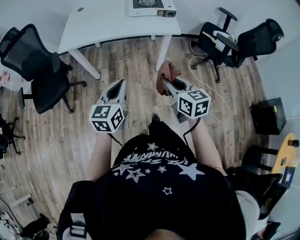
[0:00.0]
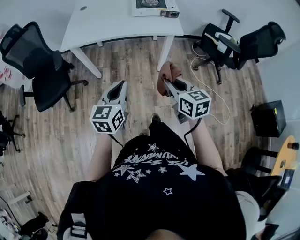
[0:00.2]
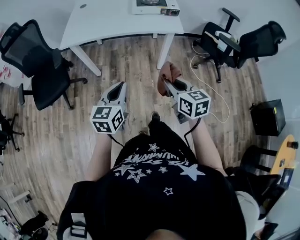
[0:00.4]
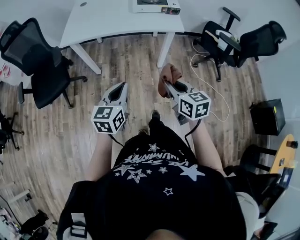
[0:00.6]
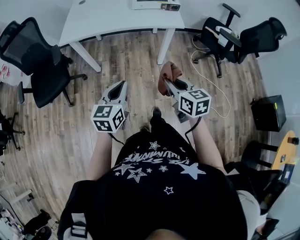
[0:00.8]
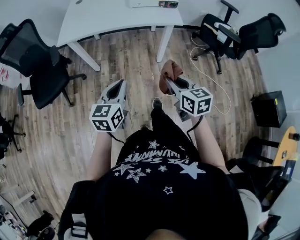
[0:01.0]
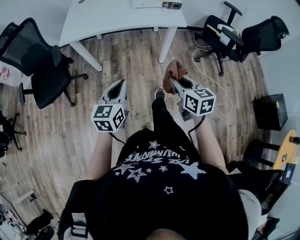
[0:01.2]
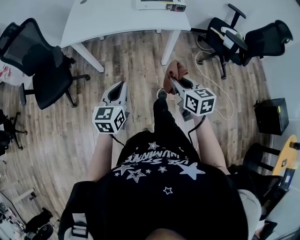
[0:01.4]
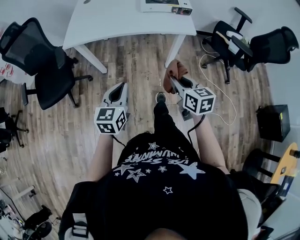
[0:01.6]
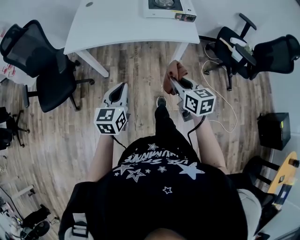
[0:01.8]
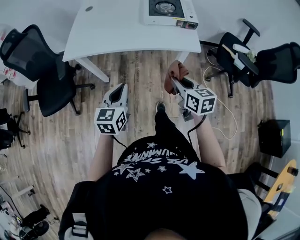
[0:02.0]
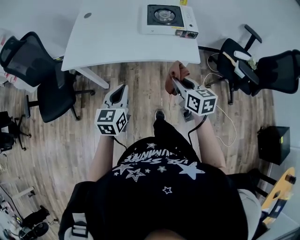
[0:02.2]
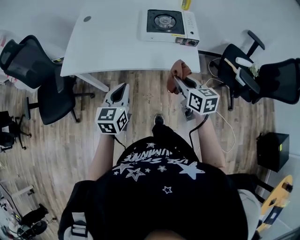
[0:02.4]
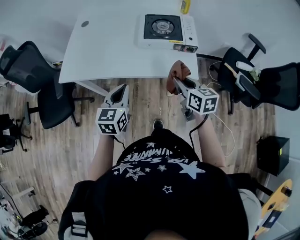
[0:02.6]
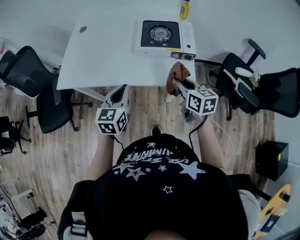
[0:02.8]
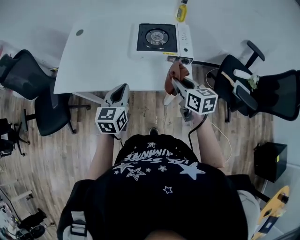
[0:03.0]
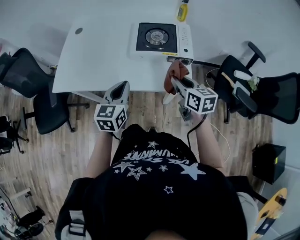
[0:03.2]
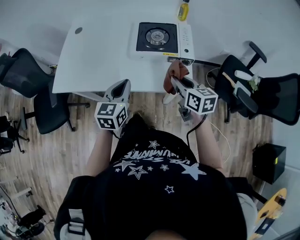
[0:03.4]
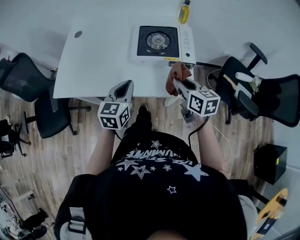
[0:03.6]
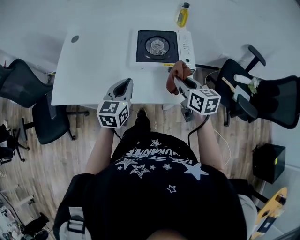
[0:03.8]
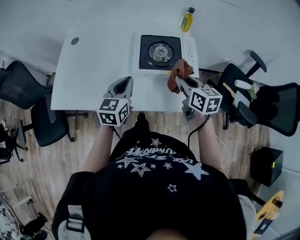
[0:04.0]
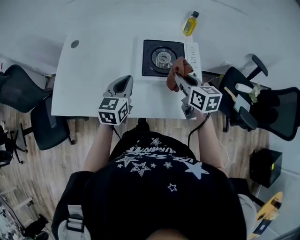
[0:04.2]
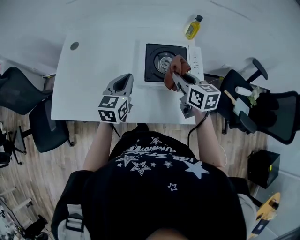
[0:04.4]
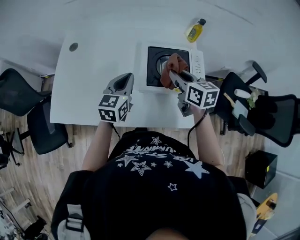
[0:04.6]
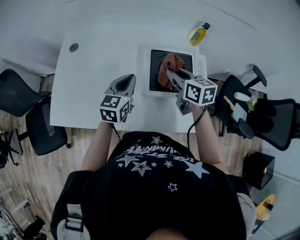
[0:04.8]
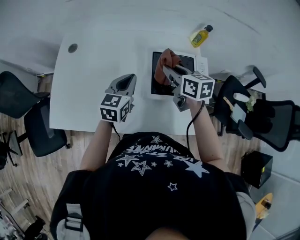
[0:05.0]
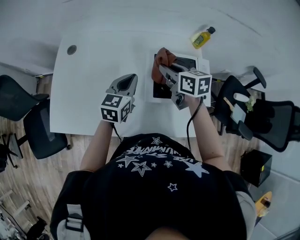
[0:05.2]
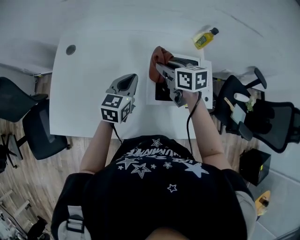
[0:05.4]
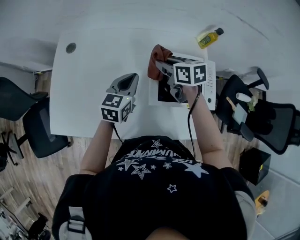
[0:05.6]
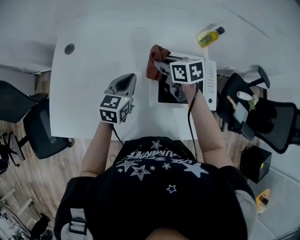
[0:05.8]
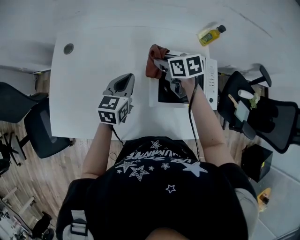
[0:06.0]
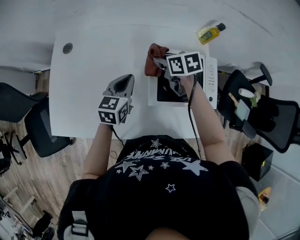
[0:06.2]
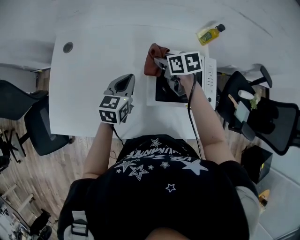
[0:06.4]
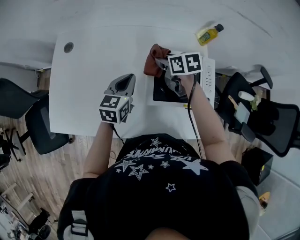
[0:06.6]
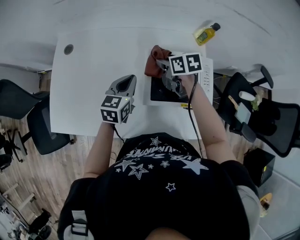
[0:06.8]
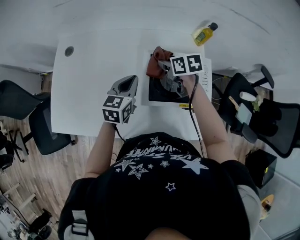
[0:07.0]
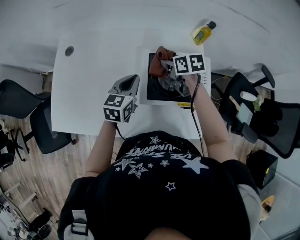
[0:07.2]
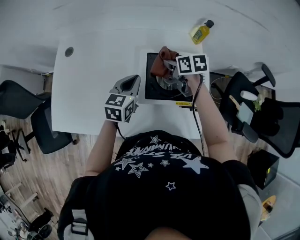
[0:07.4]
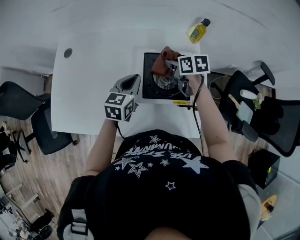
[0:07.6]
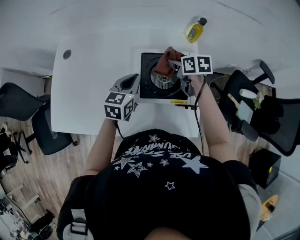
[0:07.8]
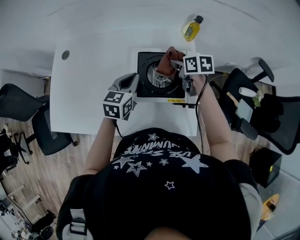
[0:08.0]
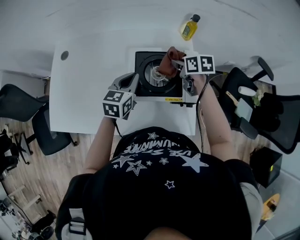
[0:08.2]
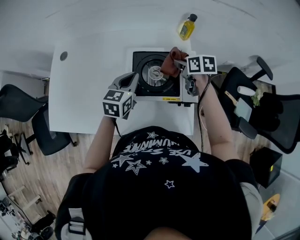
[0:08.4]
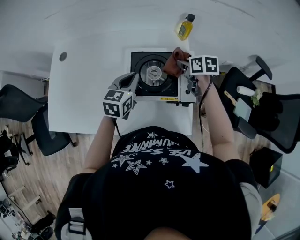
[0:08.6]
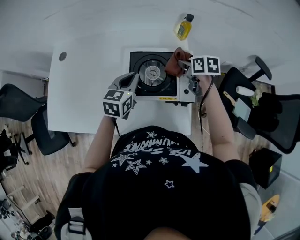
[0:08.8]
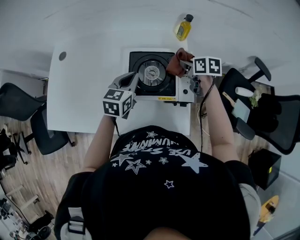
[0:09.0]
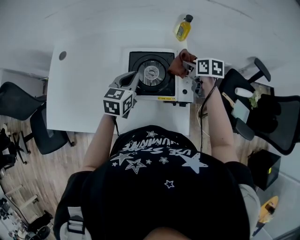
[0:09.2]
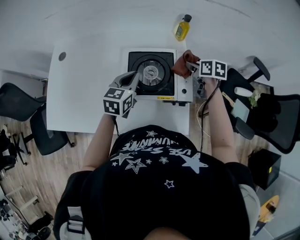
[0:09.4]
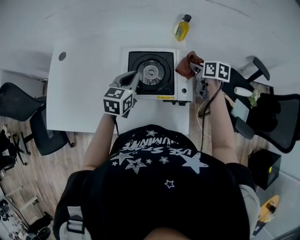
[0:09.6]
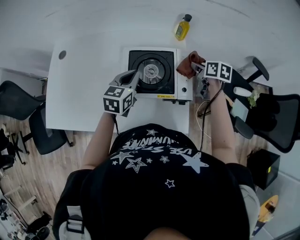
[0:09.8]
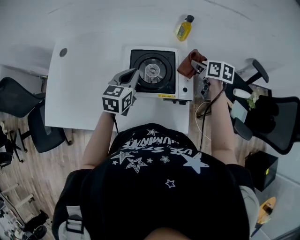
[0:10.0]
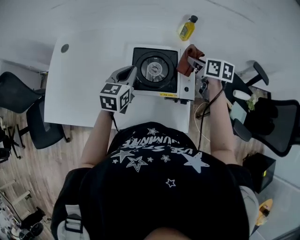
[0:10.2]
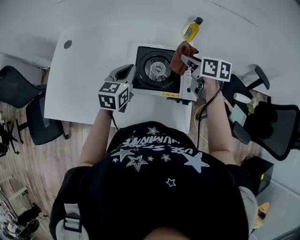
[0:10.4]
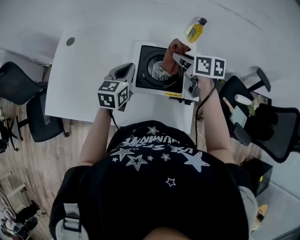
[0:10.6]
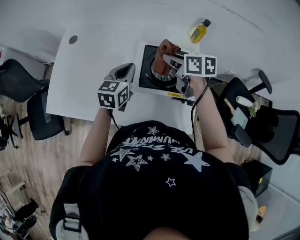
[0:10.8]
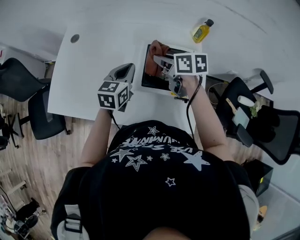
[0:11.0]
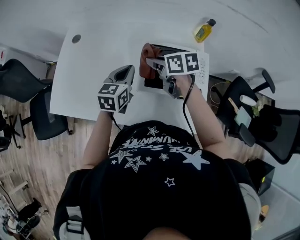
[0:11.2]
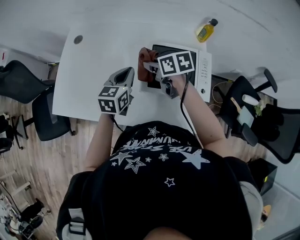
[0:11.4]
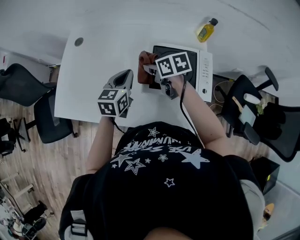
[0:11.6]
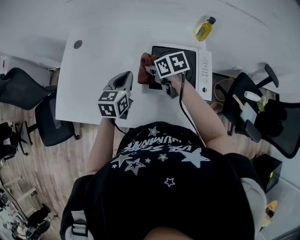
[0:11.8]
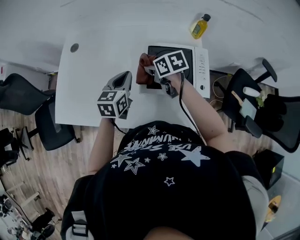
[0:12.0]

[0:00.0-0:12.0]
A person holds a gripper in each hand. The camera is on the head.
0:00.0 to 0:01.6: The two grippers go about 5 cm forward.
0:01.6 to 0:03.0: Both grippers move forward and to the right, about 40 cm.
0:03.0 to 0:04.4: Both grippers move forward, about 20 cm.
0:04.4 to 0:06.0: The right gripper is displaced forward, to the left and downward by approximately 25 cm, and rotates roughly 30 degrees. Meanwhile the left gripper travels forward and downward by approximately 15 cm.
0:06.0 to 0:07.6: Both grippers move to the right, about 10 cm.
0:07.6 to 0:09.0: The left gripper moves to the right, some 5 cm. Meanwhile the right gripper shifts some 15 cm to the right.
0:09.0 to 0:10.4: The right gripper shifts some 10 cm upward and to the left.
0:10.4 to 0:12.0: The left gripper moves to the left, about 10 cm; the right gripper goes about 20 cm to the left, and turns by roughly 20 degrees.

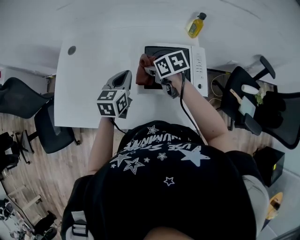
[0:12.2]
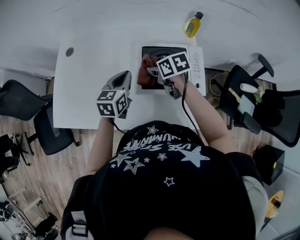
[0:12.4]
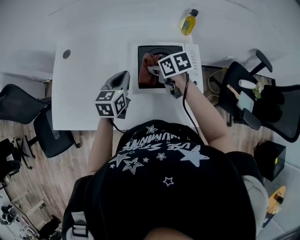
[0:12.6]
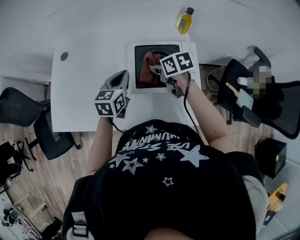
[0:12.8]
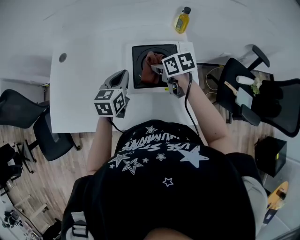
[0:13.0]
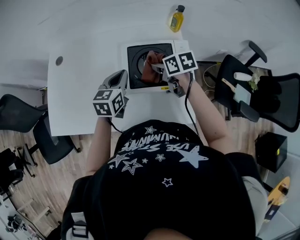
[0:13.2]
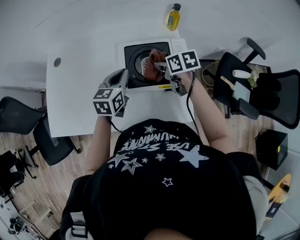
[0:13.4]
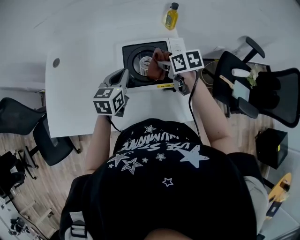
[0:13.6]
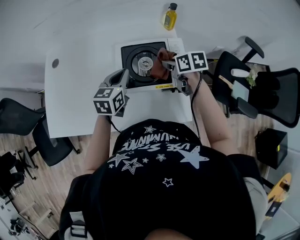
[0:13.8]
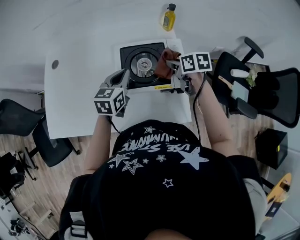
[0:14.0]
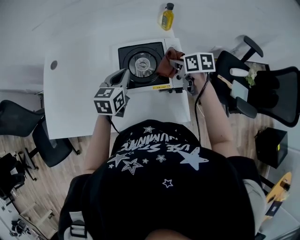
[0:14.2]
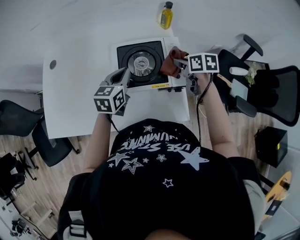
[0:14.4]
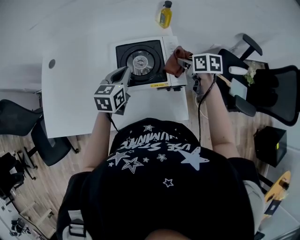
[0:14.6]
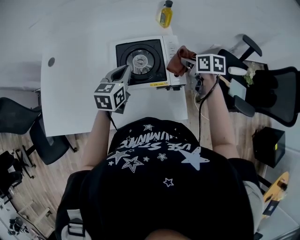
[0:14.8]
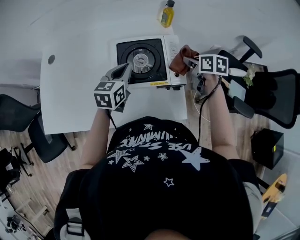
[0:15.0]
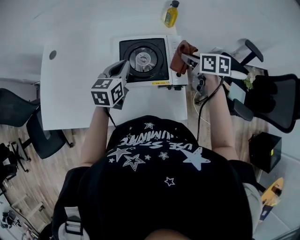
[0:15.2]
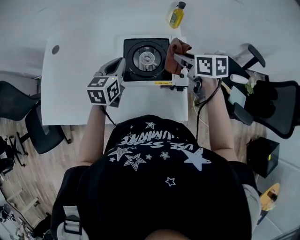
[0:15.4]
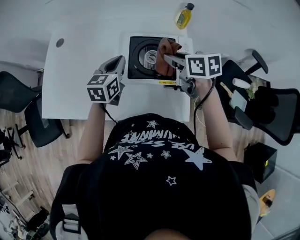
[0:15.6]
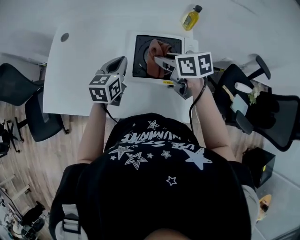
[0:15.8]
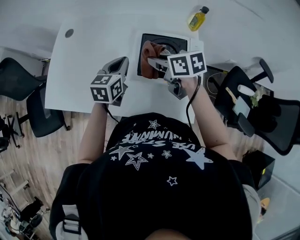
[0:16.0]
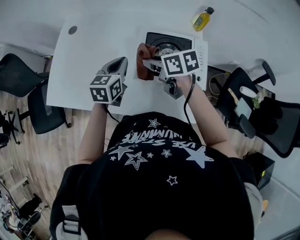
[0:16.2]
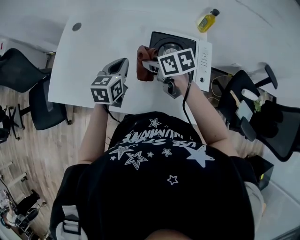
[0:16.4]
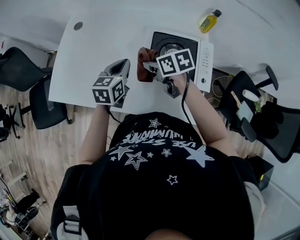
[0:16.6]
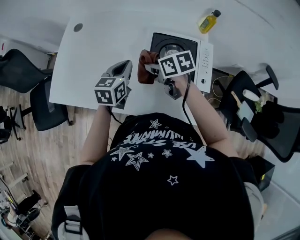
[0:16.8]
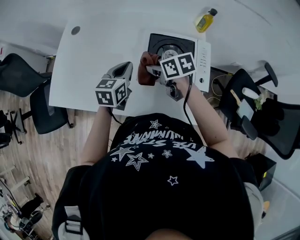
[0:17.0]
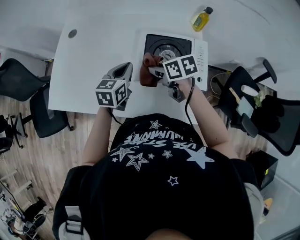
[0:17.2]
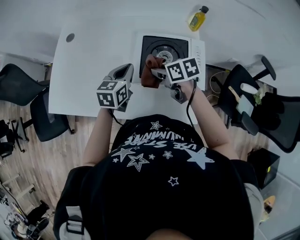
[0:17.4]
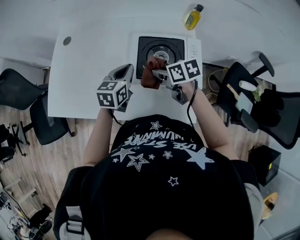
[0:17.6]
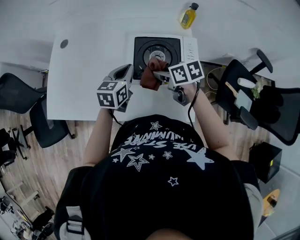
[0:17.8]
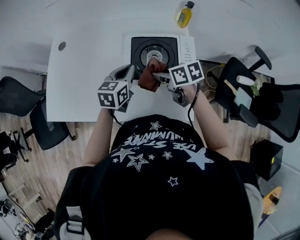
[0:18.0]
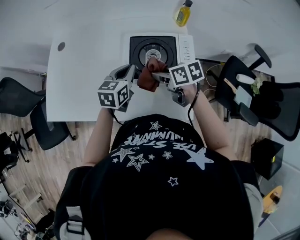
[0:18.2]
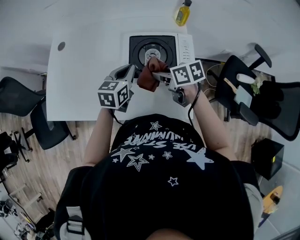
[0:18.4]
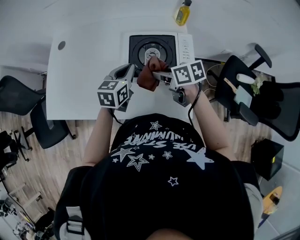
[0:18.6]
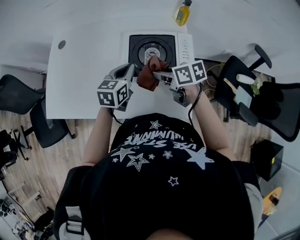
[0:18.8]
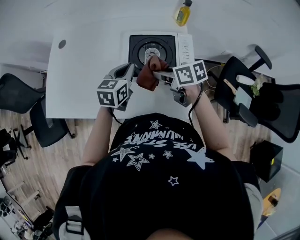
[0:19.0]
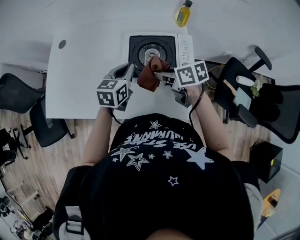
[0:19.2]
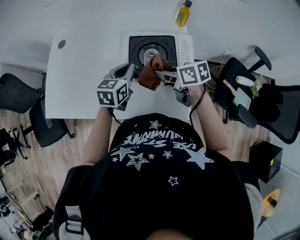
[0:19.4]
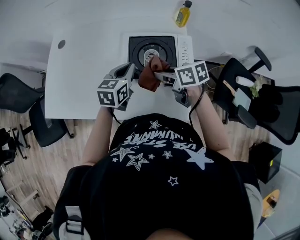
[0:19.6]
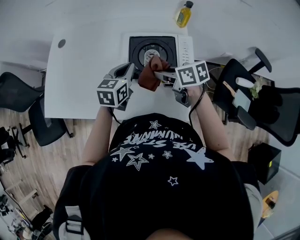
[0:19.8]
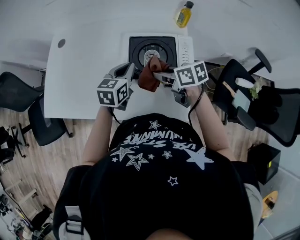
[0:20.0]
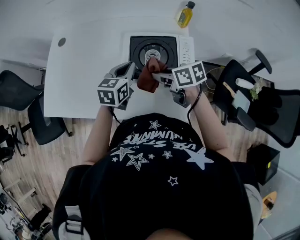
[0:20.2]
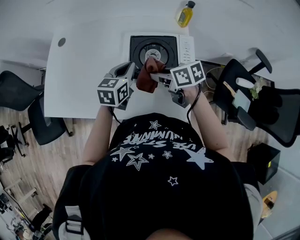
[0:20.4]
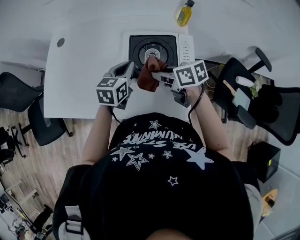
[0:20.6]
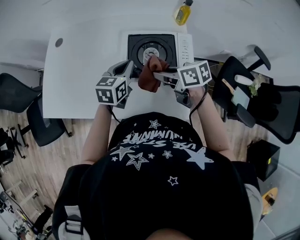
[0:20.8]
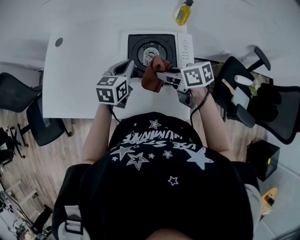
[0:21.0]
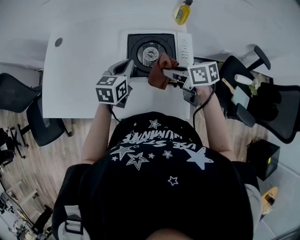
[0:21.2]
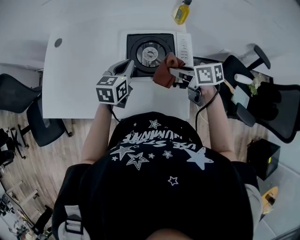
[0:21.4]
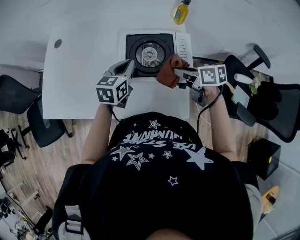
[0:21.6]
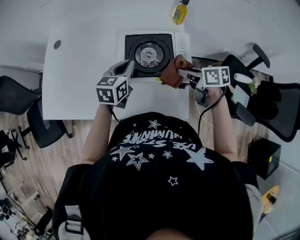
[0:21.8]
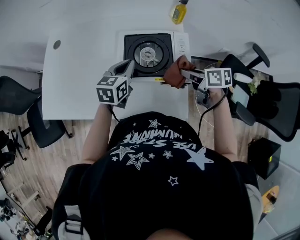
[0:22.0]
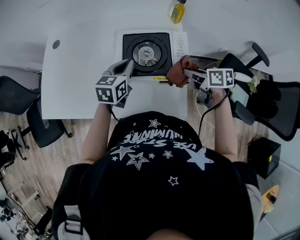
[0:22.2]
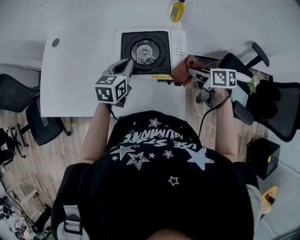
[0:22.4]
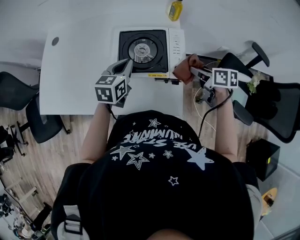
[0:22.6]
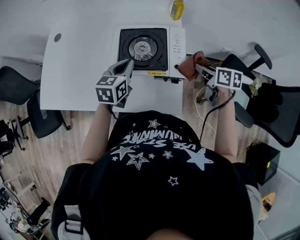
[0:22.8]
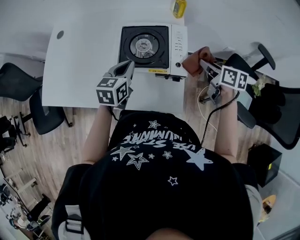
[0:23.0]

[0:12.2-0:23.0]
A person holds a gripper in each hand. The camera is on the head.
0:12.2 to 0:13.8: The left gripper heads to the right, covering approximately 10 cm. The right gripper shifts approximately 15 cm to the right.
0:13.8 to 0:15.2: The right gripper travels to the right by some 10 cm.
0:15.2 to 0:16.8: The left gripper changes place by roughly 10 cm, while the right gripper changes place by some 30 cm, and turns by roughly 30 degrees.
0:16.8 to 0:18.4: The left gripper shifts approximately 10 cm to the right. Meanwhile the right gripper moves to the right and backward, roughly 10 cm.
0:18.4 to 0:20.0: The grippers make only small movements.
0:20.0 to 0:21.4: The right gripper moves to the right, some 5 cm.
0:21.4 to 0:23.0: The left gripper shifts some 5 cm backward, while the right gripper travels to the right by about 15 cm, and changes its angle by some 20 degrees.

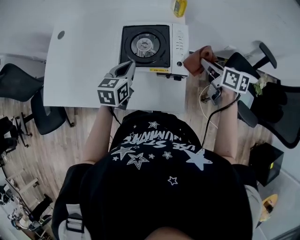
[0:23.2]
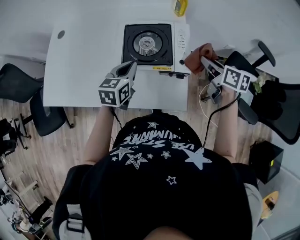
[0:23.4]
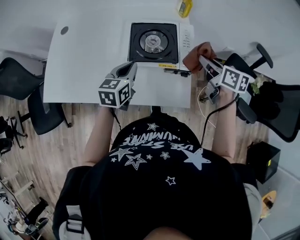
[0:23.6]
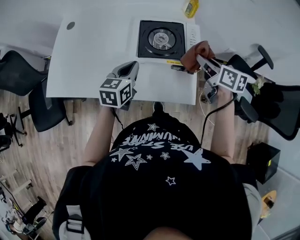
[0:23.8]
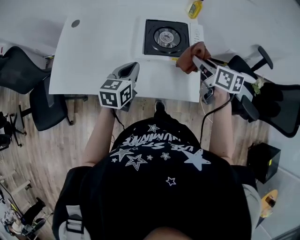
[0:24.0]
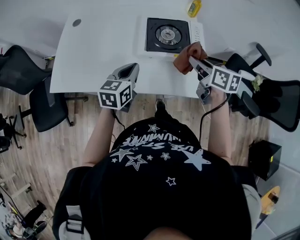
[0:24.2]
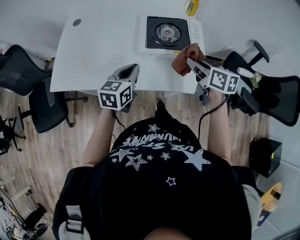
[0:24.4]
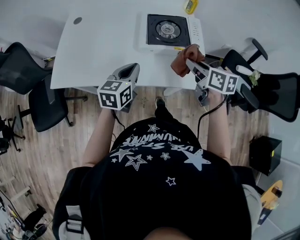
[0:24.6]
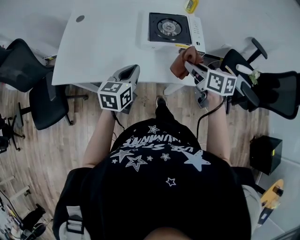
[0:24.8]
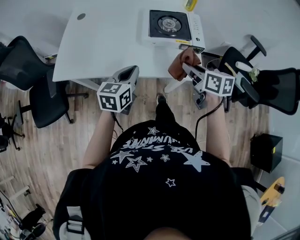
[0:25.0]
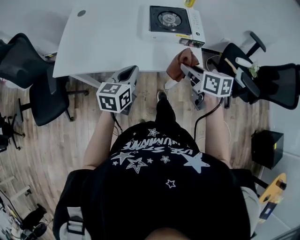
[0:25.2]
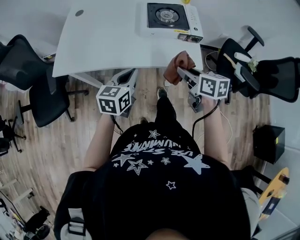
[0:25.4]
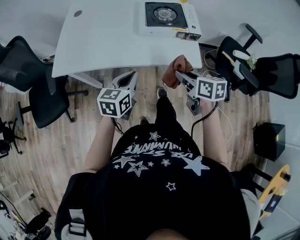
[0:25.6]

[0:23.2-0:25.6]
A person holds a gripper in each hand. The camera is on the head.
0:23.2 to 0:24.4: The left gripper travels backward and to the left by about 15 cm, while the right gripper travels to the left and backward by about 25 cm.
0:24.4 to 0:25.6: Both grippers travel together backward, about 15 cm.
